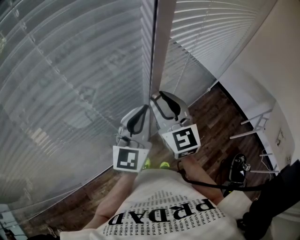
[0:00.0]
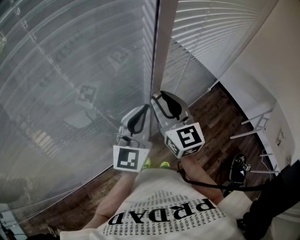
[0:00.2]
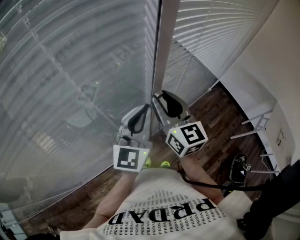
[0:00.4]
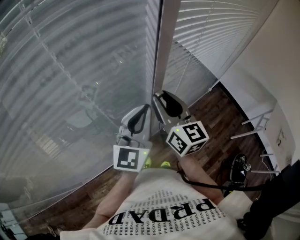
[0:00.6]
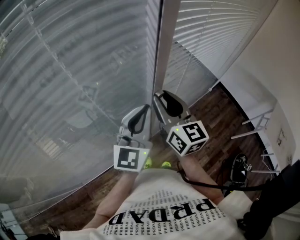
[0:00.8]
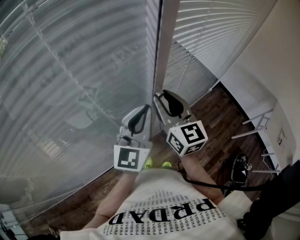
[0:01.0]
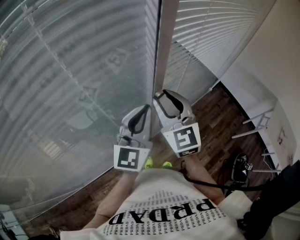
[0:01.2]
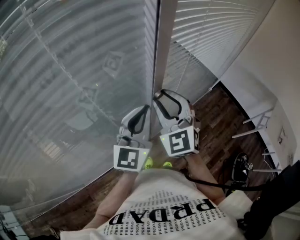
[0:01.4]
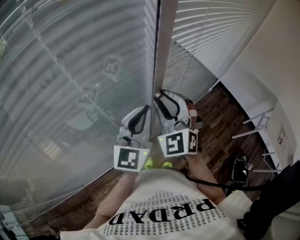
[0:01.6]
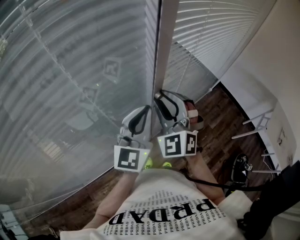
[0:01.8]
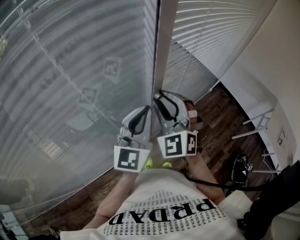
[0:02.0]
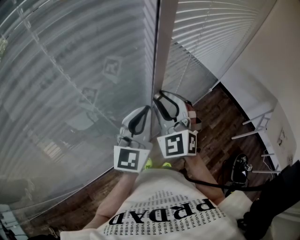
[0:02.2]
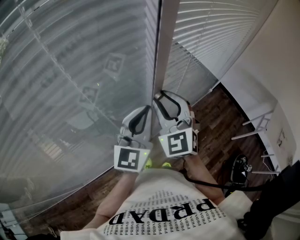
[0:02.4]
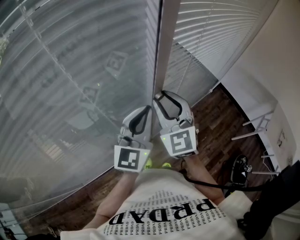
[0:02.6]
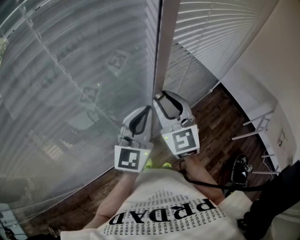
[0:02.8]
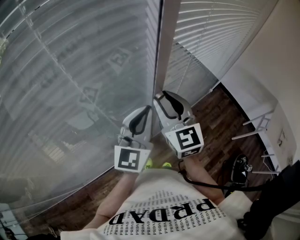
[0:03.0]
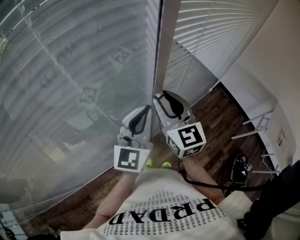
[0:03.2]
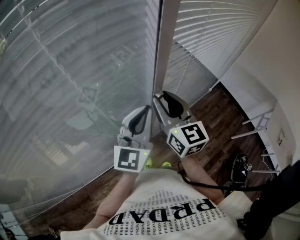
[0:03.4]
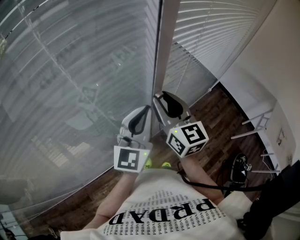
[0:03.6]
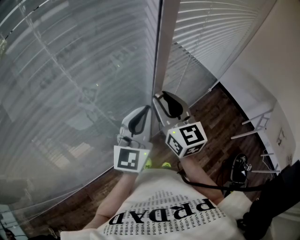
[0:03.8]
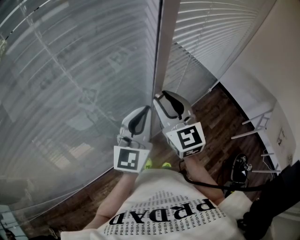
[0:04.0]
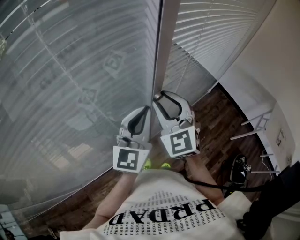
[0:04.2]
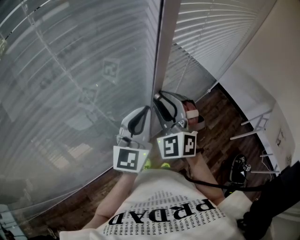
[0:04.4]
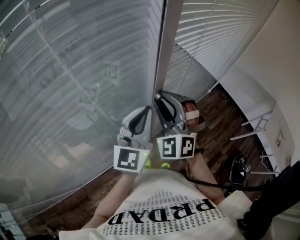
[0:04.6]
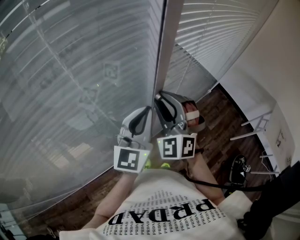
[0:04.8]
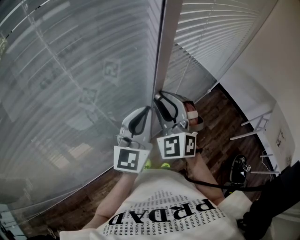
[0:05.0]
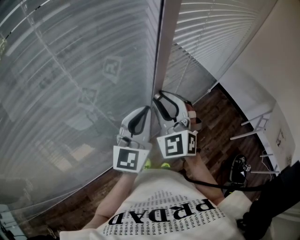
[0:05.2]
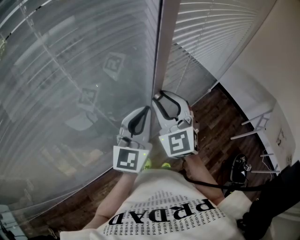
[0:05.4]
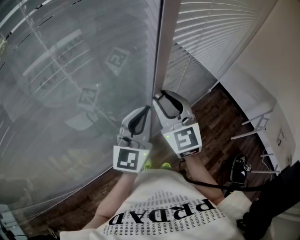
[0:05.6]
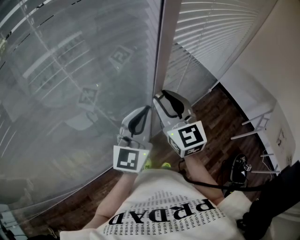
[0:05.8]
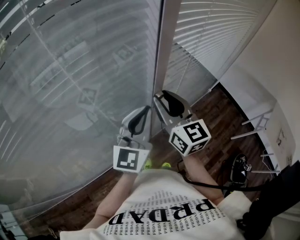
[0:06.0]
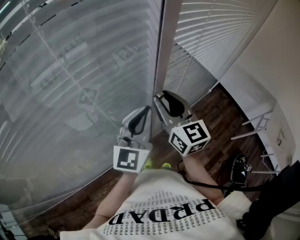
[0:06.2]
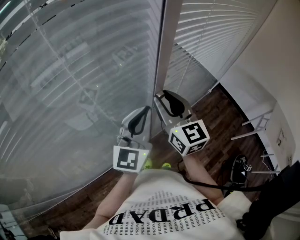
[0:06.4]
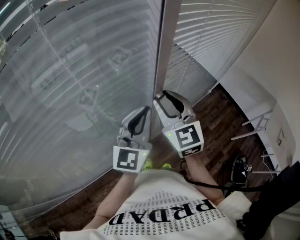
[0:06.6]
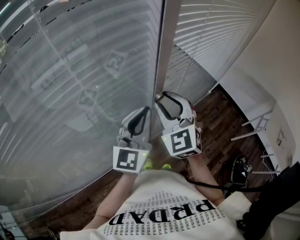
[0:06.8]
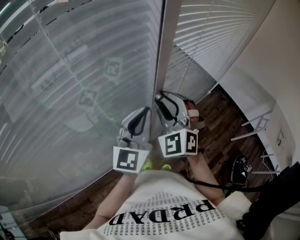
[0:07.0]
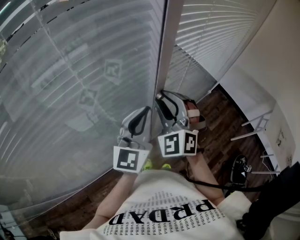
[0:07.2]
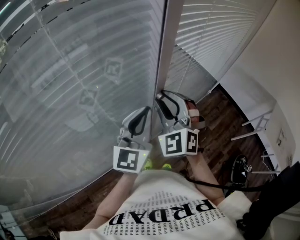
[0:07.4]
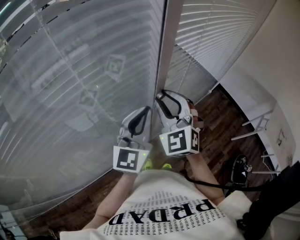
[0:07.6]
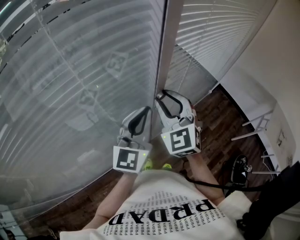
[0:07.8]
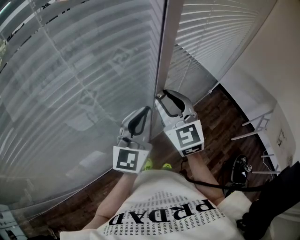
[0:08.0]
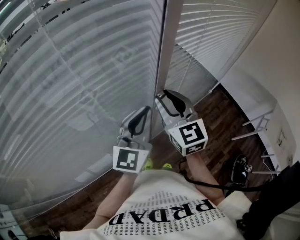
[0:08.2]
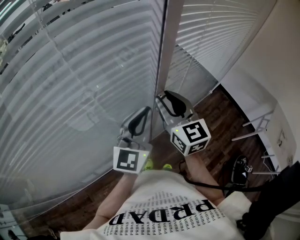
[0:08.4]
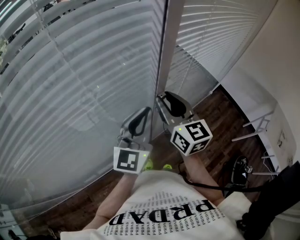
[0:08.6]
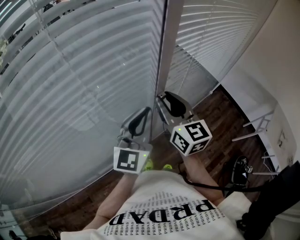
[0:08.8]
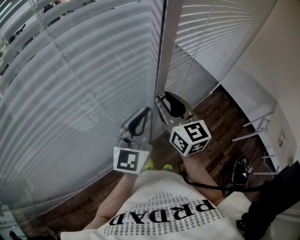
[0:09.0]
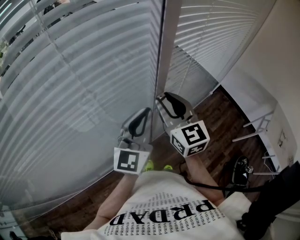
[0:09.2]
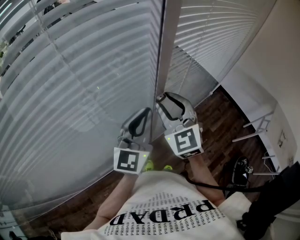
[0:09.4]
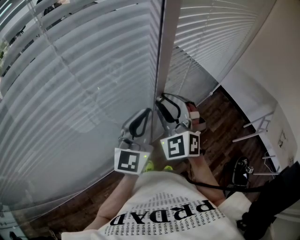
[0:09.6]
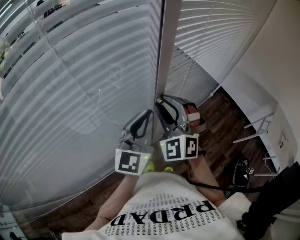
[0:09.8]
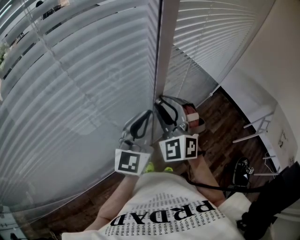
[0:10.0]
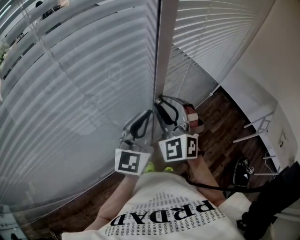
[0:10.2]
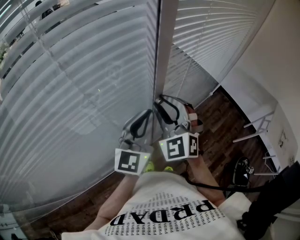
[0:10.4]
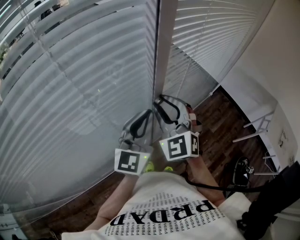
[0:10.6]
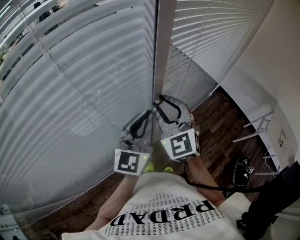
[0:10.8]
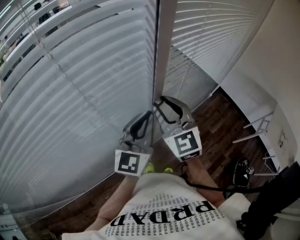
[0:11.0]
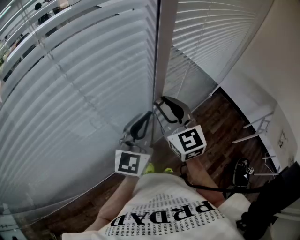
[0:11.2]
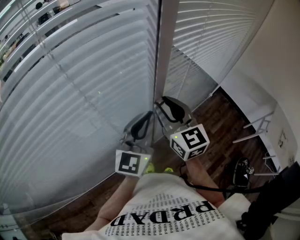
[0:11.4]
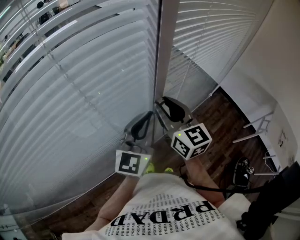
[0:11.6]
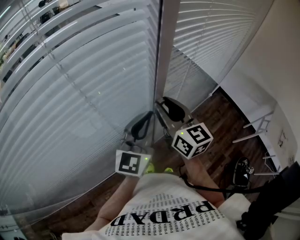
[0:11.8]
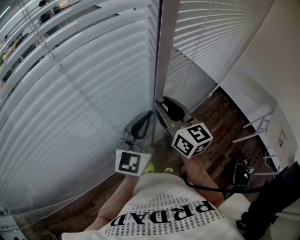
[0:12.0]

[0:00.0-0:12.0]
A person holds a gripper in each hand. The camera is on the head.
0:00.0 to 0:01.6: The right gripper changes its angle by some 30 degrees.
0:01.6 to 0:03.0: The right gripper changes its angle by approximately 30 degrees.
0:03.0 to 0:04.4: The right gripper twists approximately 40 degrees counterclockwise, seen from behind.
0:04.4 to 0:06.0: The right gripper twists about 60 degrees clockwise, seen from behind.
0:06.0 to 0:07.6: The right gripper rotates around the line of its fingers by some 50 degrees, counterclockwise from behind.
0:07.6 to 0:09.0: The right gripper twists approximately 50 degrees clockwise, seen from behind.
0:09.0 to 0:10.4: The right gripper rotates around the line of its fingers by some 50 degrees, counterclockwise from behind.
0:10.4 to 0:12.0: The right gripper rotates around the line of its fingers by some 60 degrees, clockwise from behind.

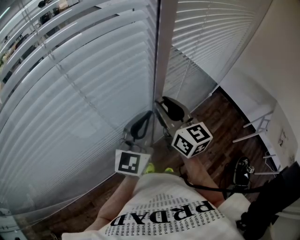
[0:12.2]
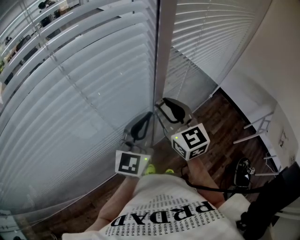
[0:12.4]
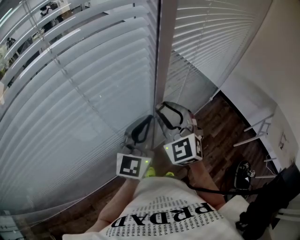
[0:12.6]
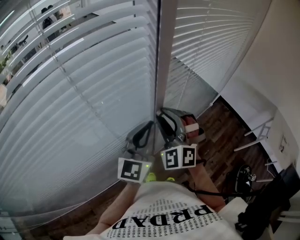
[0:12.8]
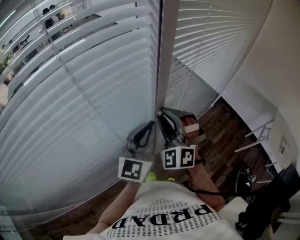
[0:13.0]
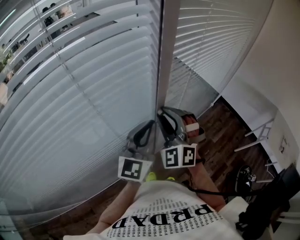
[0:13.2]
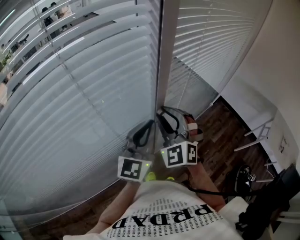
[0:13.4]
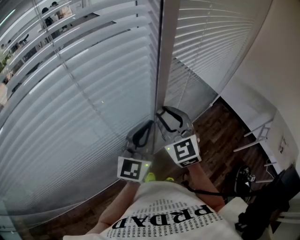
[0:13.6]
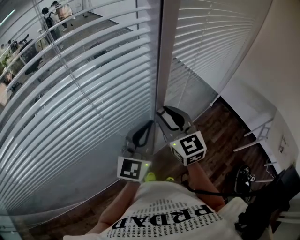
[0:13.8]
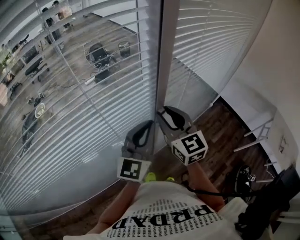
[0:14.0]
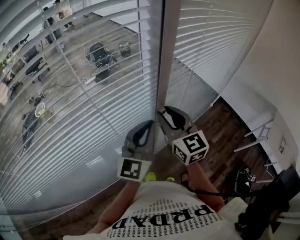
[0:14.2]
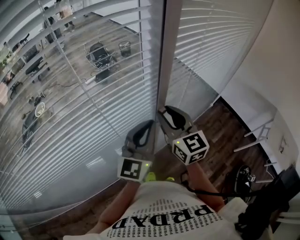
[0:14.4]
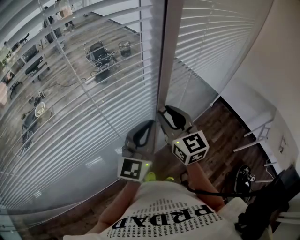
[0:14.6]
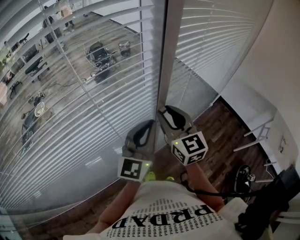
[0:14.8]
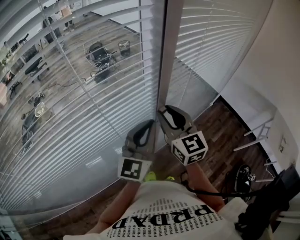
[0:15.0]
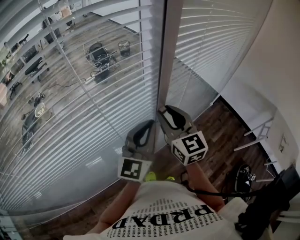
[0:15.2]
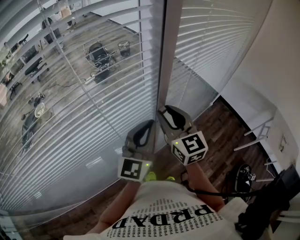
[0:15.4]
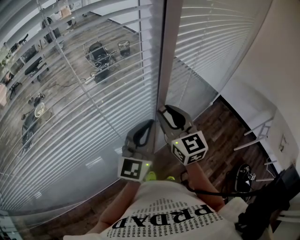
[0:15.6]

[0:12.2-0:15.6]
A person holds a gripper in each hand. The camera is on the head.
0:12.2 to 0:13.8: The right gripper changes its angle by some 20 degrees.
0:13.8 to 0:15.6: There are only small adjustments of the grippers.

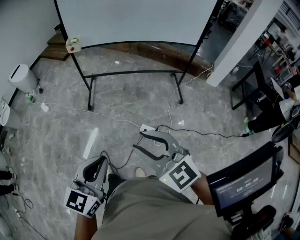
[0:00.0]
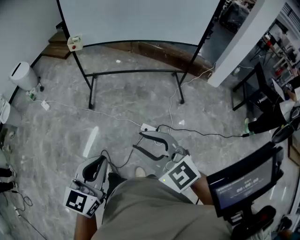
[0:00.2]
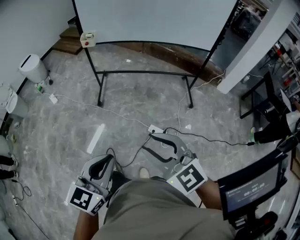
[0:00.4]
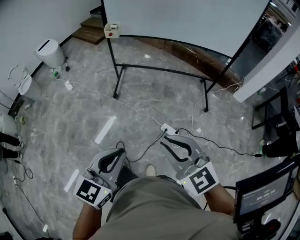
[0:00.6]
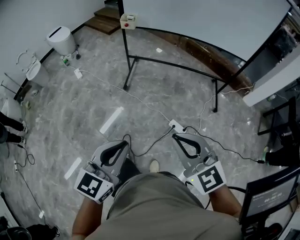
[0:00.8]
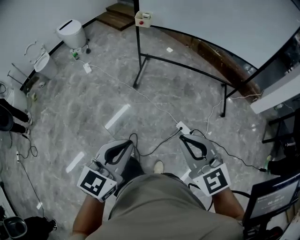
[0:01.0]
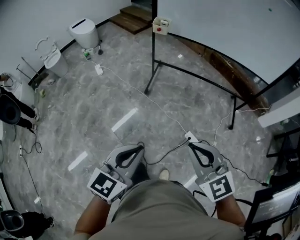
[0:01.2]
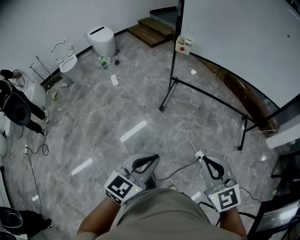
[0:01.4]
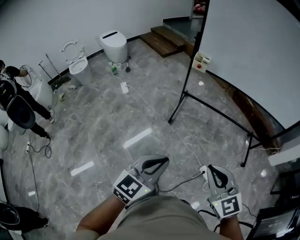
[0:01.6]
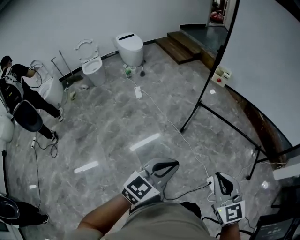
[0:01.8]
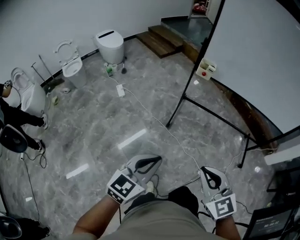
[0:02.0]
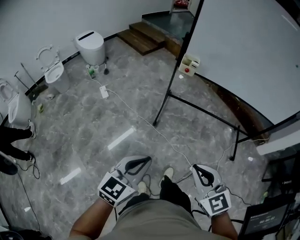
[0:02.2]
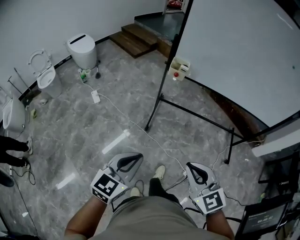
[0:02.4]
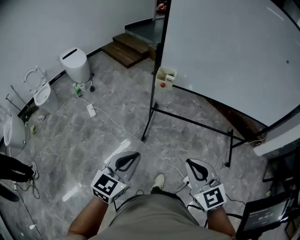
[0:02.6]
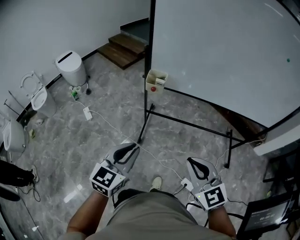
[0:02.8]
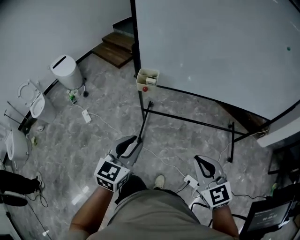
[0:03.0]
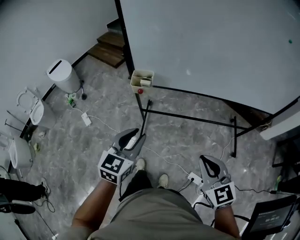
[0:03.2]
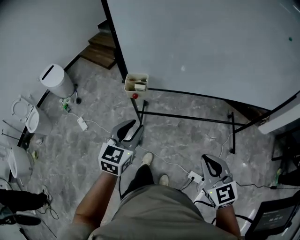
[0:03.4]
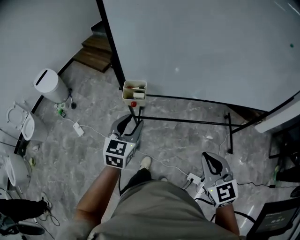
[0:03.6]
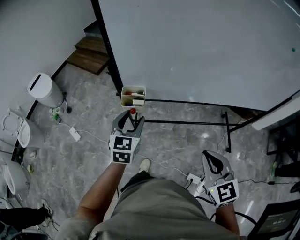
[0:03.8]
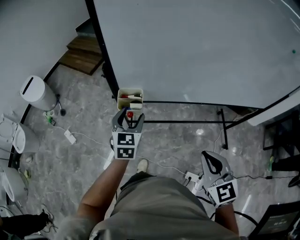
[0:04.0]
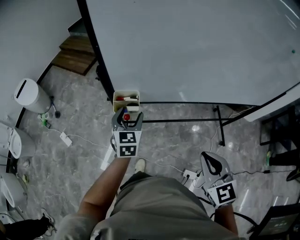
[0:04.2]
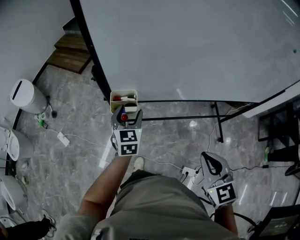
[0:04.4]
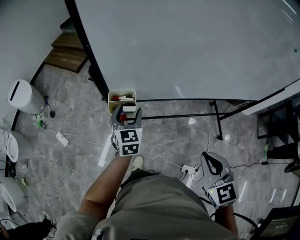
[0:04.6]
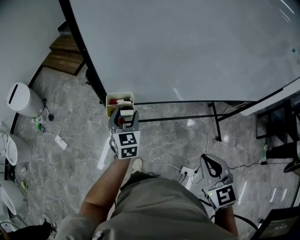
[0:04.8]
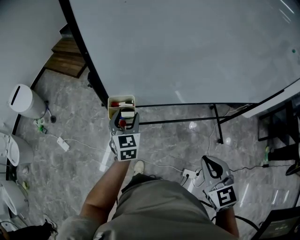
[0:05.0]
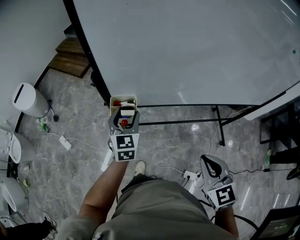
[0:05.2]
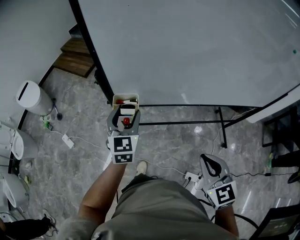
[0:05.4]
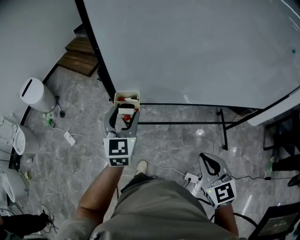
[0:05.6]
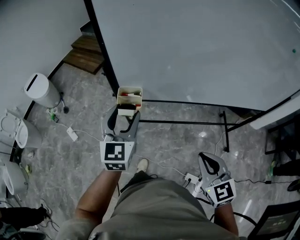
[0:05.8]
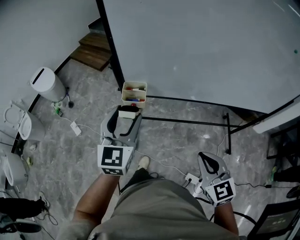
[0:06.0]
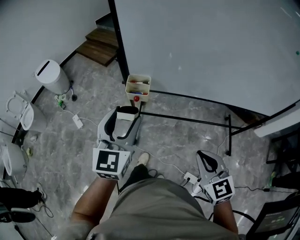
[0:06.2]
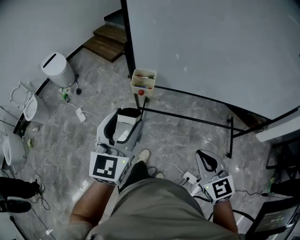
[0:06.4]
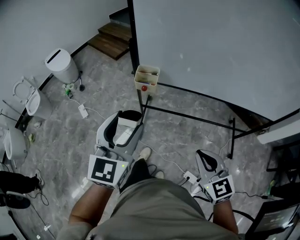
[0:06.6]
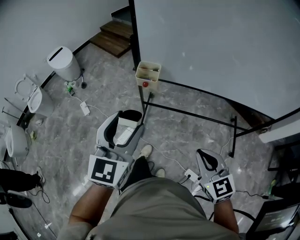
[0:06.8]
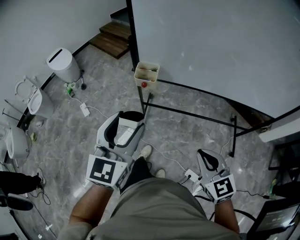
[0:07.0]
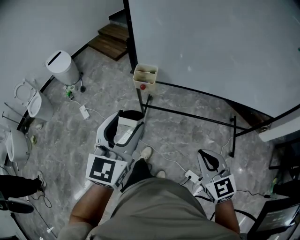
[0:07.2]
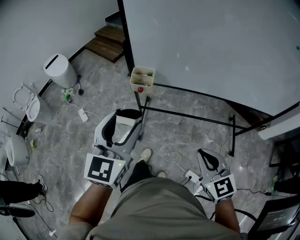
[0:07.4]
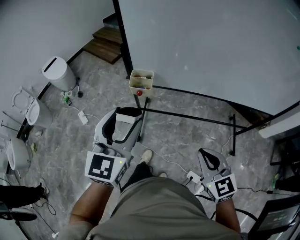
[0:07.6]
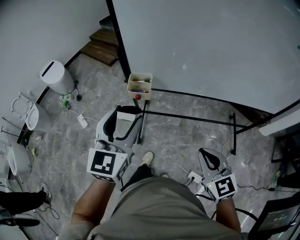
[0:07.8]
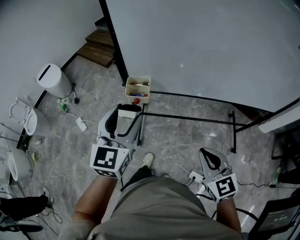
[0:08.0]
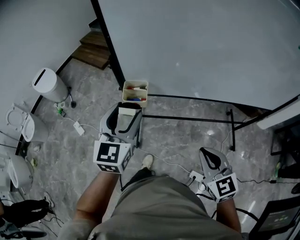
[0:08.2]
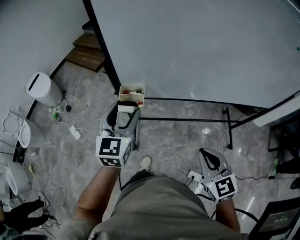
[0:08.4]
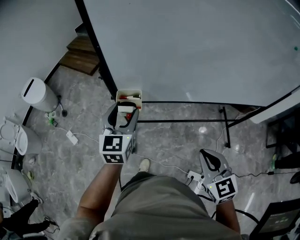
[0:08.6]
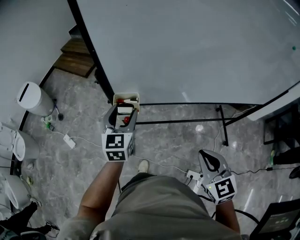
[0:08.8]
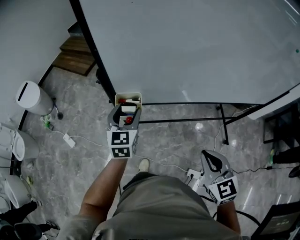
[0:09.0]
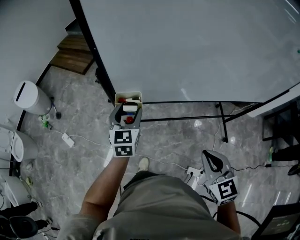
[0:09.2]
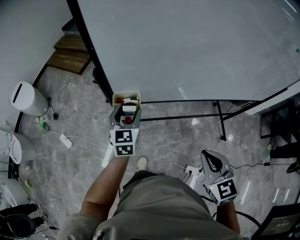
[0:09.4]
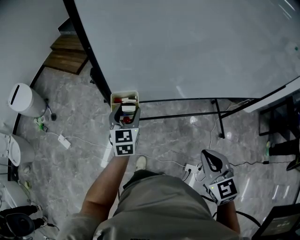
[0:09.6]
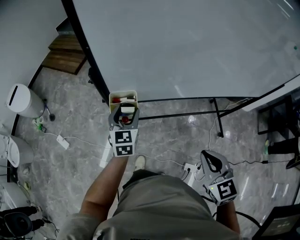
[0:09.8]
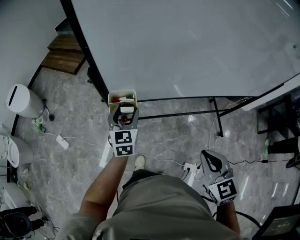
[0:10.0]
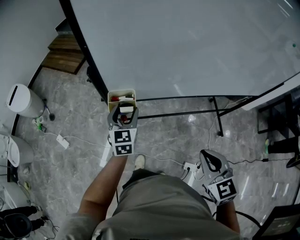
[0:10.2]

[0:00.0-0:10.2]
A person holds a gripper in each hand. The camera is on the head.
0:00.0 to 0:01.4: Both grippers move to the left and forward, some 20 cm. The right gripper closes up.
0:01.4 to 0:03.0: Both grippers move forward, approximately 40 cm.
0:03.0 to 0:04.4: The left gripper goes about 35 cm forward, and opens its fingers. Meanwhile the right gripper travels forward by approximately 15 cm, and swivels approximately 20 degrees.
0:04.4 to 0:05.8: The left gripper goes about 15 cm upward and backward.
0:05.8 to 0:07.2: The right gripper travels backward by about 10 cm. Meanwhile the left gripper is displaced backward by about 20 cm.
0:07.2 to 0:08.8: The right gripper is displaced forward by roughly 10 cm; the left gripper goes about 30 cm forward and downward.
0:08.8 to 0:10.2: The left gripper goes some 10 cm downward.
